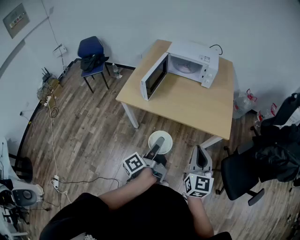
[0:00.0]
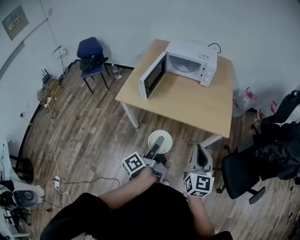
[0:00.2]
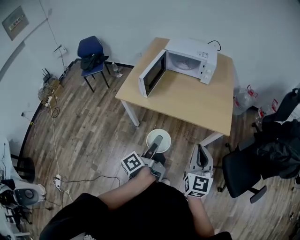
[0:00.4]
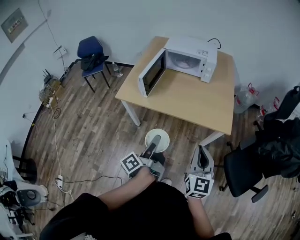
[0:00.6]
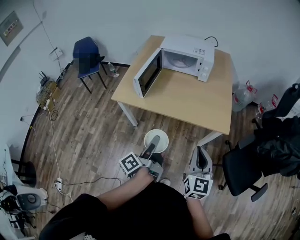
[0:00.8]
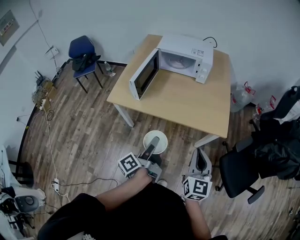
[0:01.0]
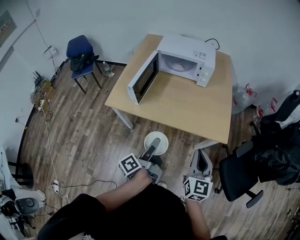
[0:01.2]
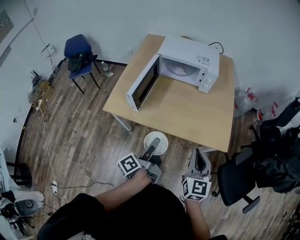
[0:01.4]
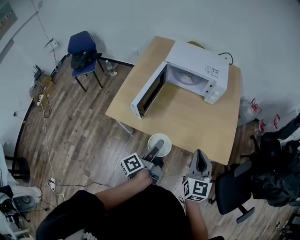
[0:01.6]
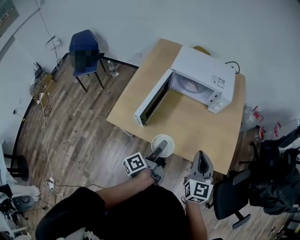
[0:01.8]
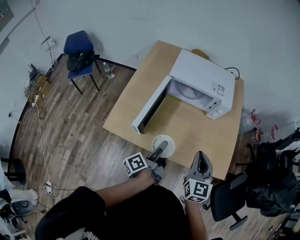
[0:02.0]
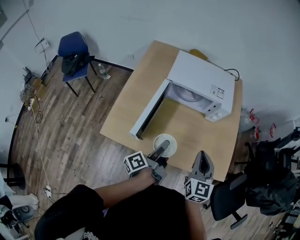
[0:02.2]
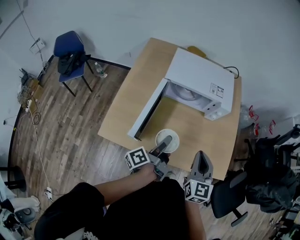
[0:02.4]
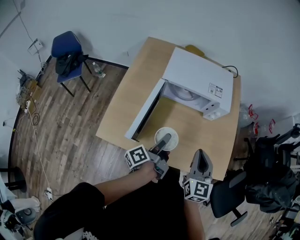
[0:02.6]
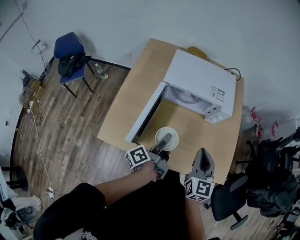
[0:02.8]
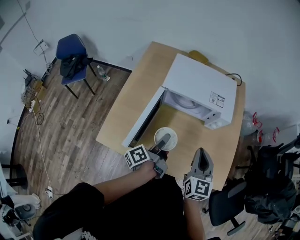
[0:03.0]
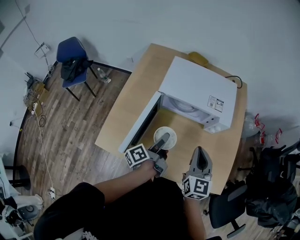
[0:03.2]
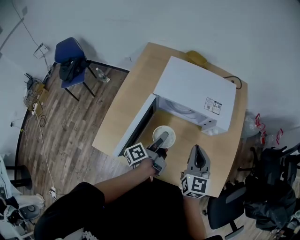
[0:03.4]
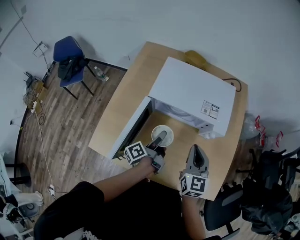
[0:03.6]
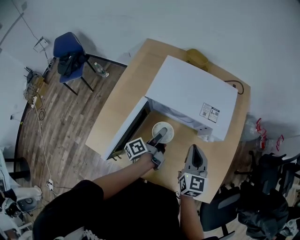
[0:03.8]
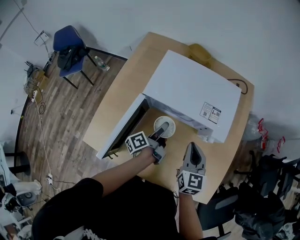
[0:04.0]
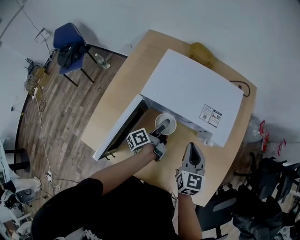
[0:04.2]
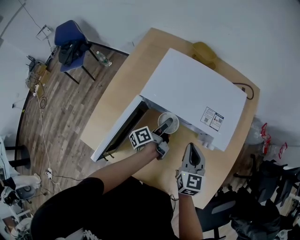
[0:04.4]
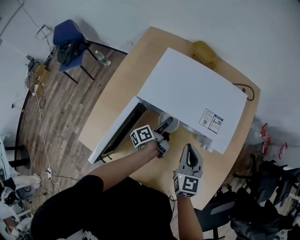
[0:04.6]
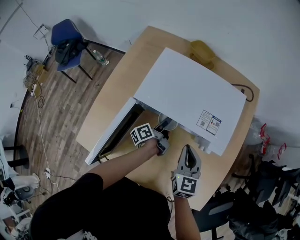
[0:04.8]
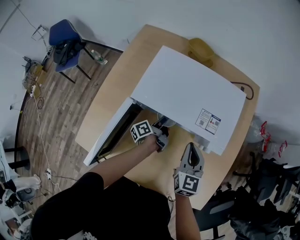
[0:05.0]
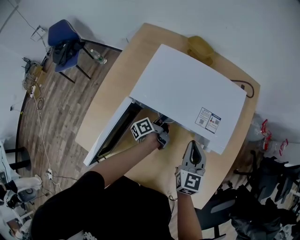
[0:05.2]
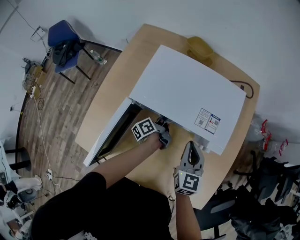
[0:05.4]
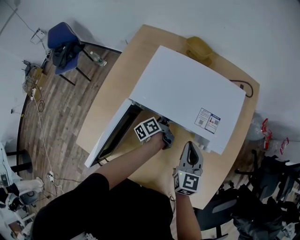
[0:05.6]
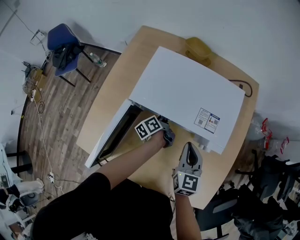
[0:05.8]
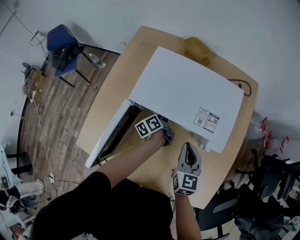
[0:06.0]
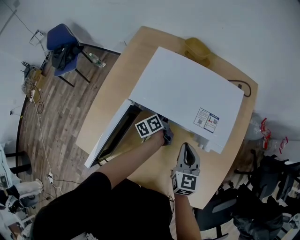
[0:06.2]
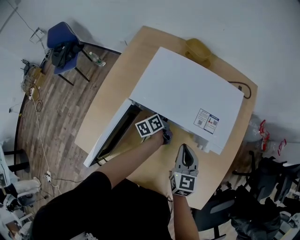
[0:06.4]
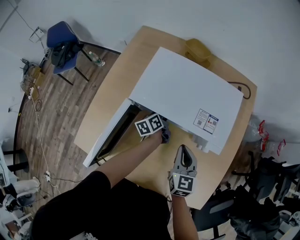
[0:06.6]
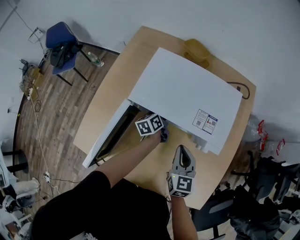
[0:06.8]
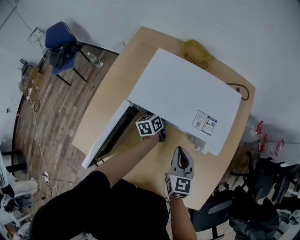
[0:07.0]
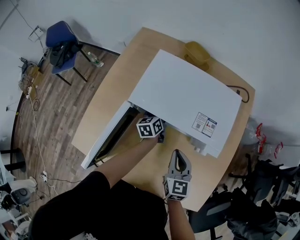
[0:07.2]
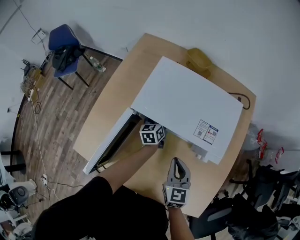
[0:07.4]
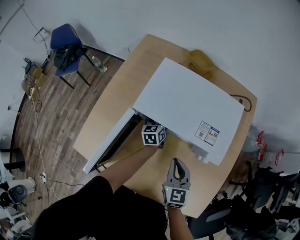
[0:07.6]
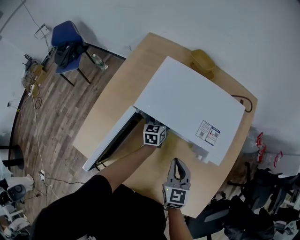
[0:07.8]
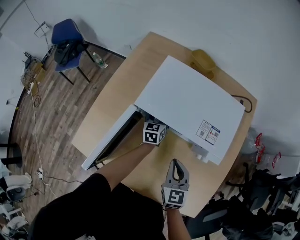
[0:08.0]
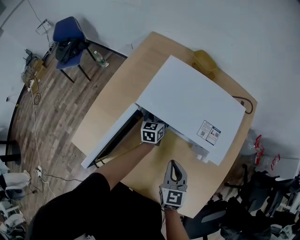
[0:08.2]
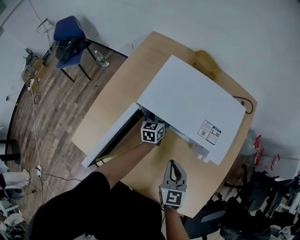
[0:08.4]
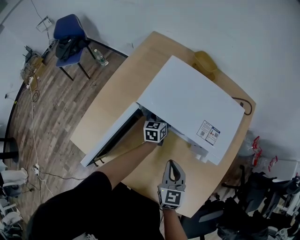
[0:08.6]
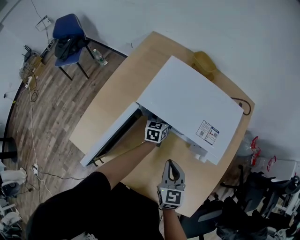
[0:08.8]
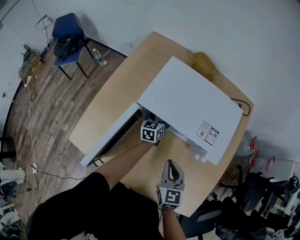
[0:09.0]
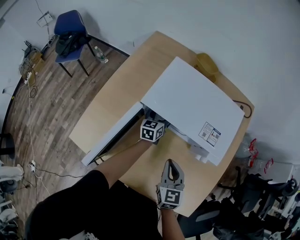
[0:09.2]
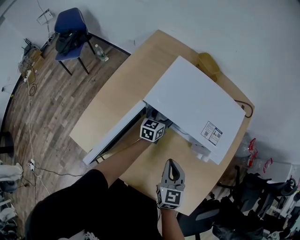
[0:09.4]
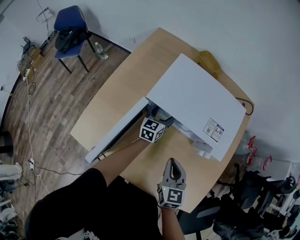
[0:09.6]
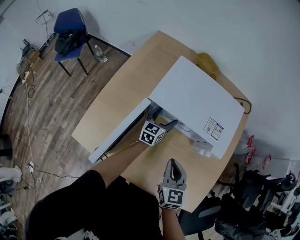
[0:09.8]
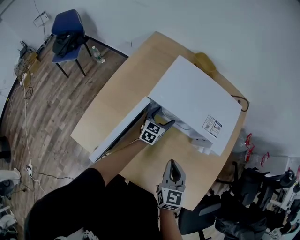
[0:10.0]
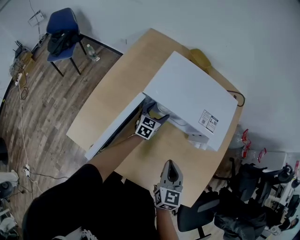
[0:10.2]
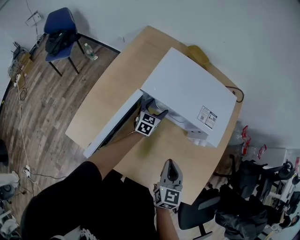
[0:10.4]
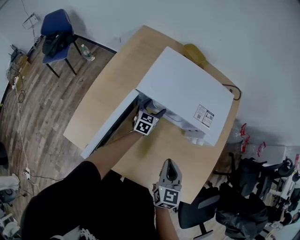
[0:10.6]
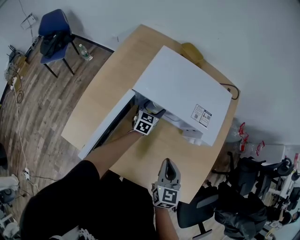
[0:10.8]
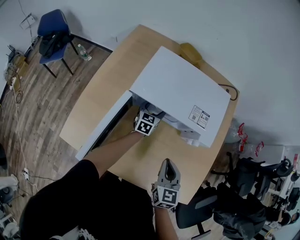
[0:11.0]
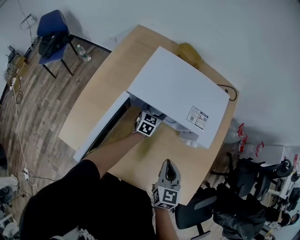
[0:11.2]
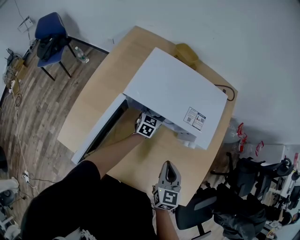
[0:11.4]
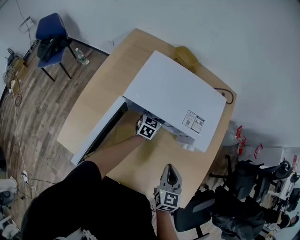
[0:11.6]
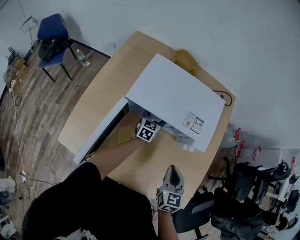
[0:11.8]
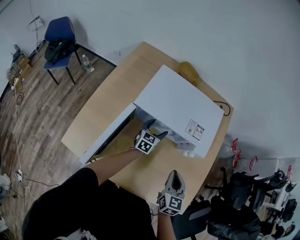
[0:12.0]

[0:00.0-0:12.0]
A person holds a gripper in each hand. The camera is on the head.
0:00.0 to 0:01.6: Both grippers move forward, roughly 20 cm.
0:01.6 to 0:03.0: Both grippers move forward, about 20 cm.
0:03.0 to 0:04.4: The grippers both shift forward and downward by some 20 cm.
0:04.4 to 0:06.0: The left gripper shifts roughly 10 cm forward.
0:06.0 to 0:07.6: The left gripper turns by about 40 degrees, and opens its fingers, while the right gripper shifts by approximately 5 cm.
0:07.6 to 0:09.0: The grippers move only a little.
0:09.0 to 0:10.4: The left gripper rotates about 20 degrees. Meanwhile the right gripper goes about 5 cm backward.
0:10.4 to 0:12.0: Both grippers move to the right, about 5 cm.

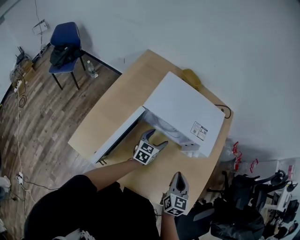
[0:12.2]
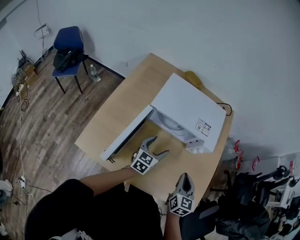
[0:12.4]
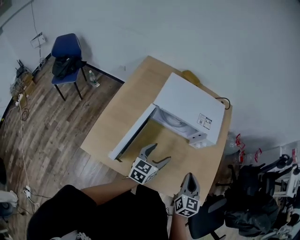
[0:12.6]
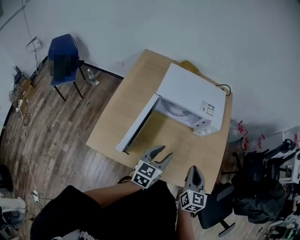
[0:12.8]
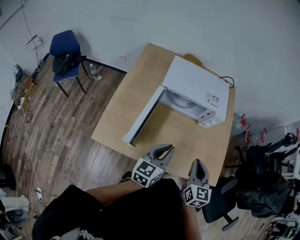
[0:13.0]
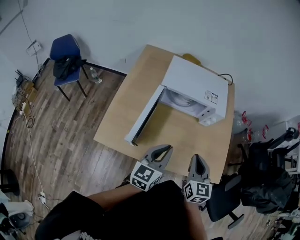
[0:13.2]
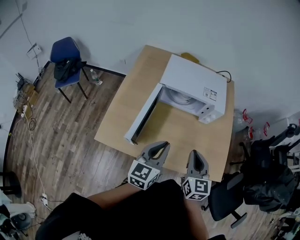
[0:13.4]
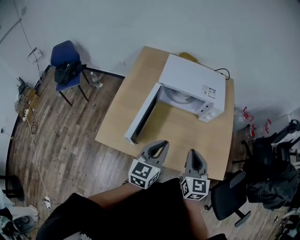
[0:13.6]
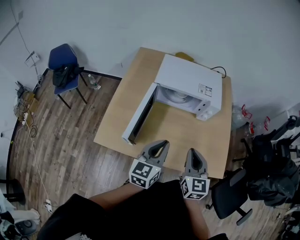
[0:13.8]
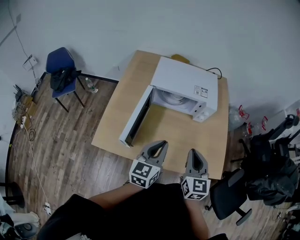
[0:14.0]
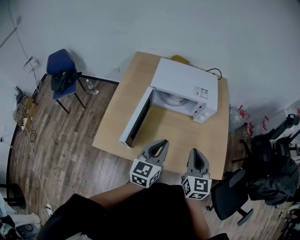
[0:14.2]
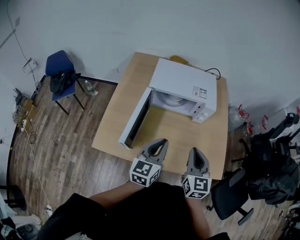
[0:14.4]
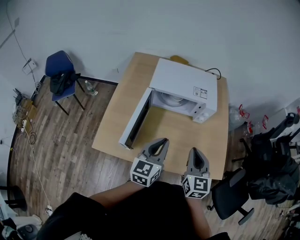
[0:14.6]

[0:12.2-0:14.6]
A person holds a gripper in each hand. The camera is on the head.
0:12.2 to 0:13.4: The left gripper moves backward and upward, some 35 cm, and closes its fingers. The right gripper shifts about 20 cm backward, upward and to the left.
0:13.4 to 0:14.6: The grippers make only small movements.

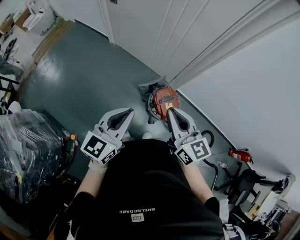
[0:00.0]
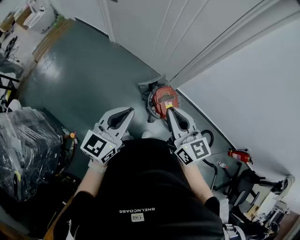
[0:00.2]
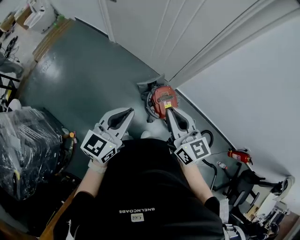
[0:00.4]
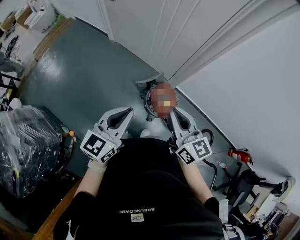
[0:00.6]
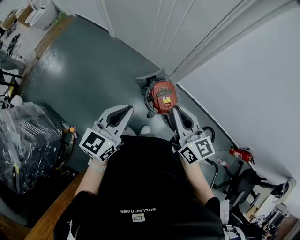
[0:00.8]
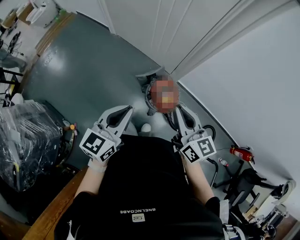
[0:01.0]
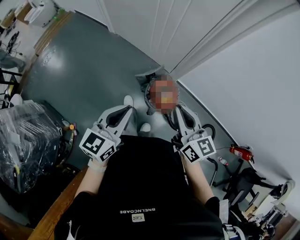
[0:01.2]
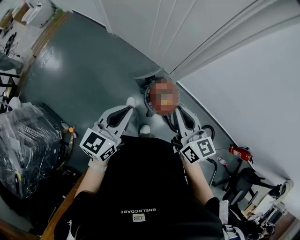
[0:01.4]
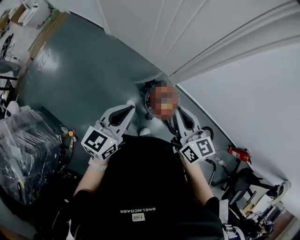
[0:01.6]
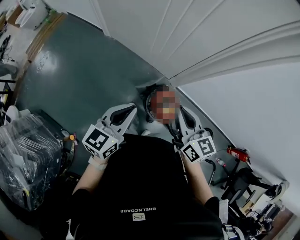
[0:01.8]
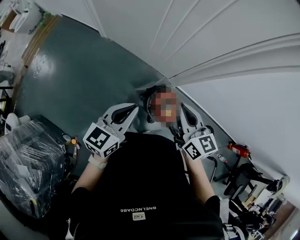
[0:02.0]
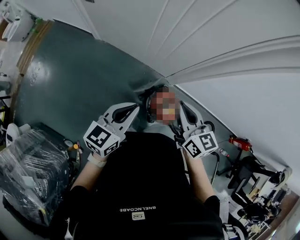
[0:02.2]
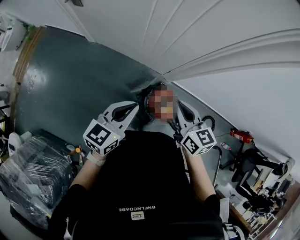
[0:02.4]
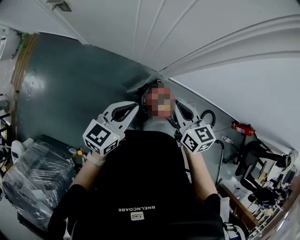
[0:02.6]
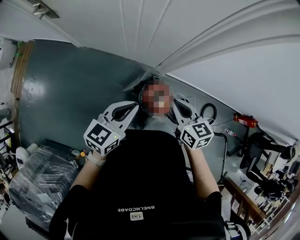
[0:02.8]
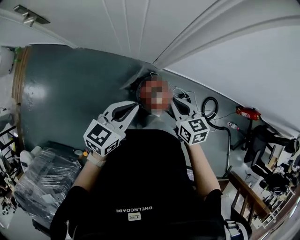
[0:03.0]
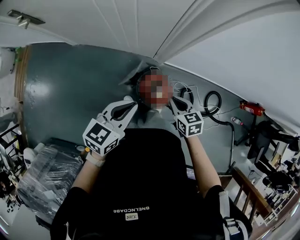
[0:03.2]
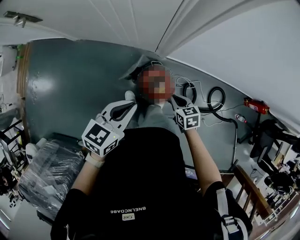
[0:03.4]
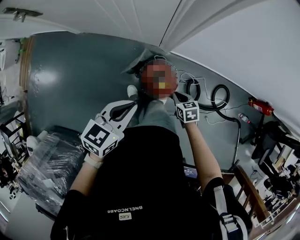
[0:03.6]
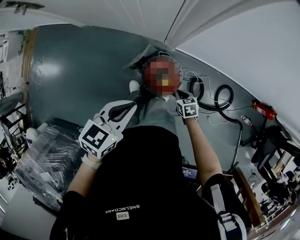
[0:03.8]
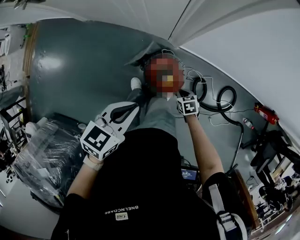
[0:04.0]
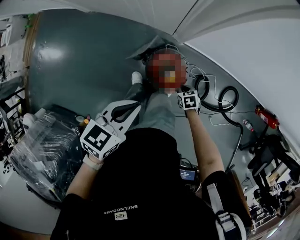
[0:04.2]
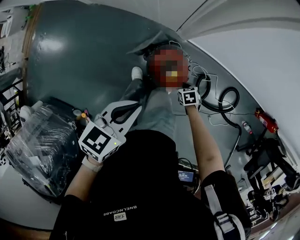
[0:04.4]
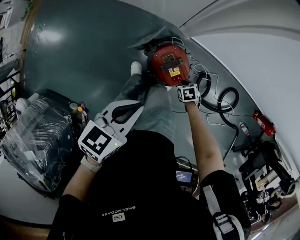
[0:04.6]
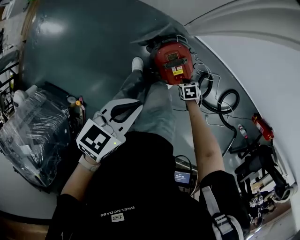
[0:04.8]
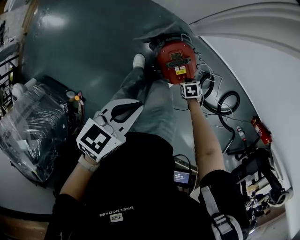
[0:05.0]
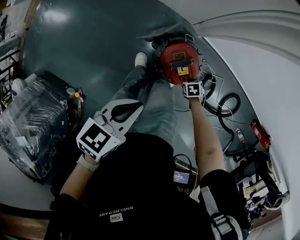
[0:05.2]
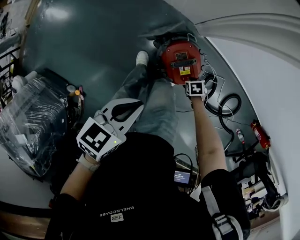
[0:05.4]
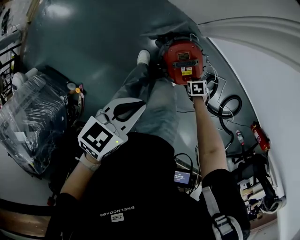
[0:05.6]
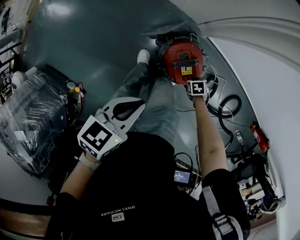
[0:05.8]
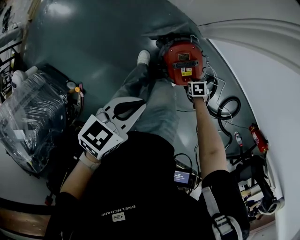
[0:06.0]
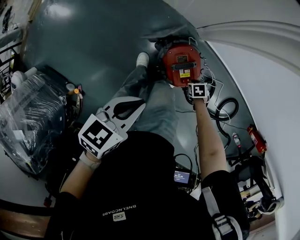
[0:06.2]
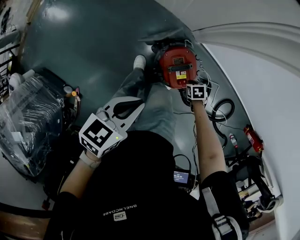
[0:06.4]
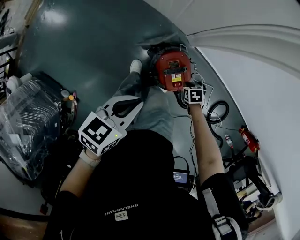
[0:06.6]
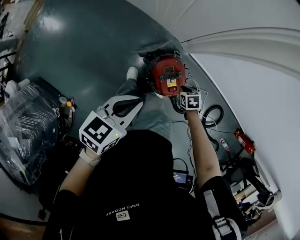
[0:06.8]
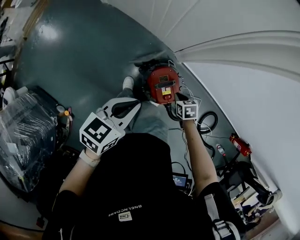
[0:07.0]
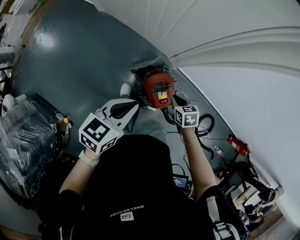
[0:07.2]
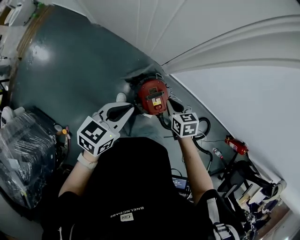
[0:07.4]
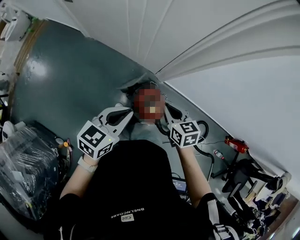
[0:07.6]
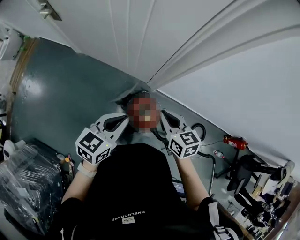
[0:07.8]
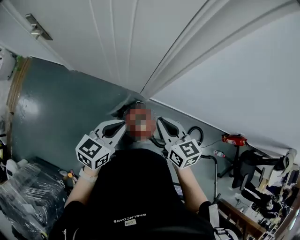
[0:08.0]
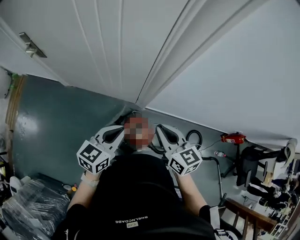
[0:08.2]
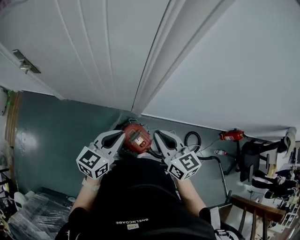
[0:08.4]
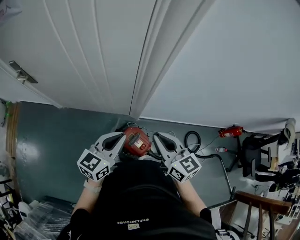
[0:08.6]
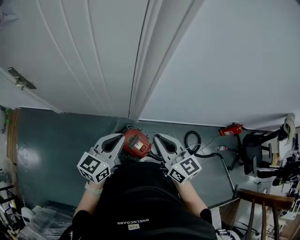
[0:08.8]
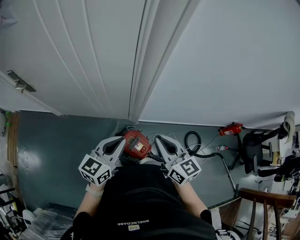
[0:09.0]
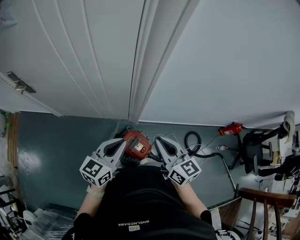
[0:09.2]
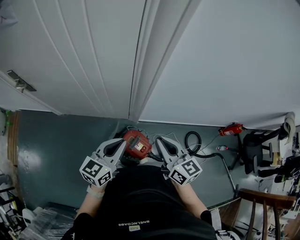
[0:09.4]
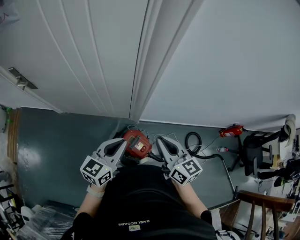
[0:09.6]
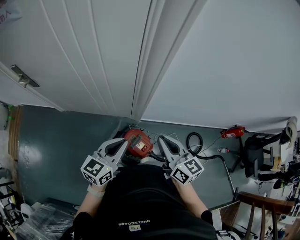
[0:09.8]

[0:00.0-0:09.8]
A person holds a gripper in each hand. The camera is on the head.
0:00.0 to 0:01.4: The two grippers go roughly 5 cm to the right.
0:01.4 to 0:02.8: The left gripper heads forward, covering roughly 20 cm, and changes its angle by about 30 degrees, while the right gripper heads forward and downward, covering approximately 15 cm, and changes its angle by approximately 20 degrees.
0:02.8 to 0:04.2: The right gripper heads downward, covering about 40 cm, and tips its fingers downward by approximately 40 degrees; the left gripper shifts some 15 cm to the right and downward, and swivels about 20 degrees.
0:04.2 to 0:05.6: The left gripper shifts about 10 cm downward. Meanwhile the right gripper moves downward, approximately 15 cm.
0:05.6 to 0:07.0: The right gripper goes about 20 cm upward; the left gripper is displaced upward by roughly 10 cm.
0:07.0 to 0:08.4: The left gripper shifts about 15 cm upward, and turns by approximately 30 degrees; the right gripper heads upward, covering roughly 50 cm, and tilts its fingers some 50 degrees upward.
0:08.4 to 0:09.8: The grippers make only small movements.
